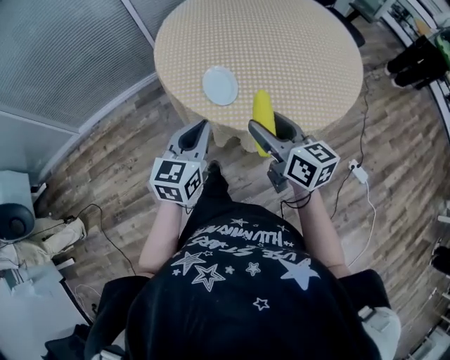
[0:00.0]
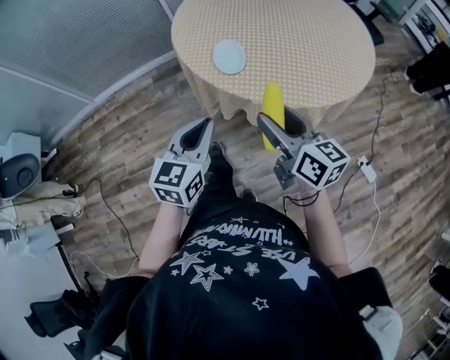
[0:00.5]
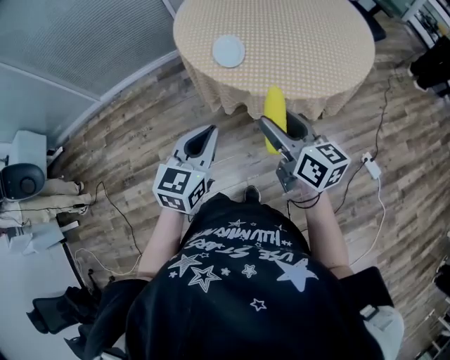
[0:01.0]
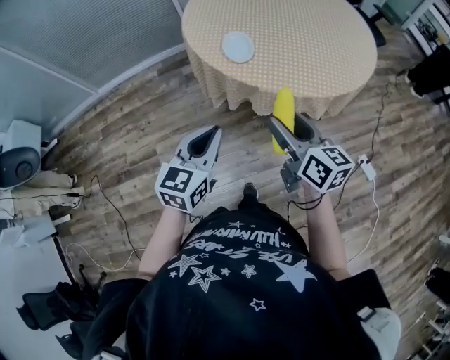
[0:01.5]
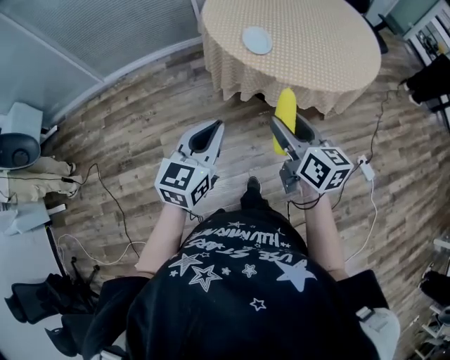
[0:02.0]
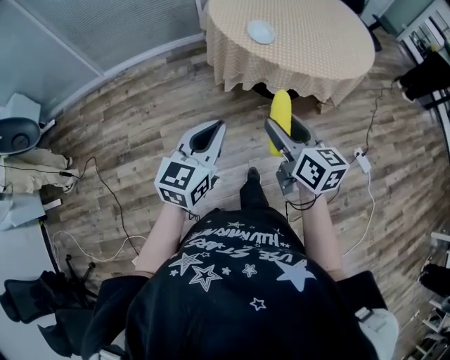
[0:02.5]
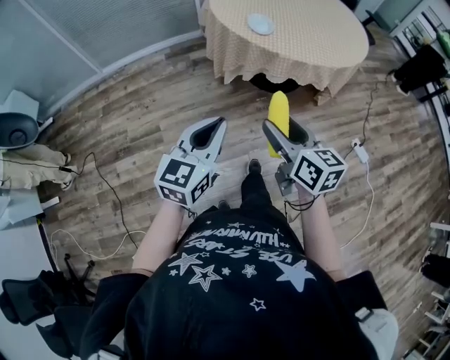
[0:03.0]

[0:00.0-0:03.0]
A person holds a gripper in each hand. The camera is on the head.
0:00.0 to 0:01.5: The two grippers go some 15 cm backward.
0:01.5 to 0:03.0: Both grippers travel together backward and to the left, some 25 cm.

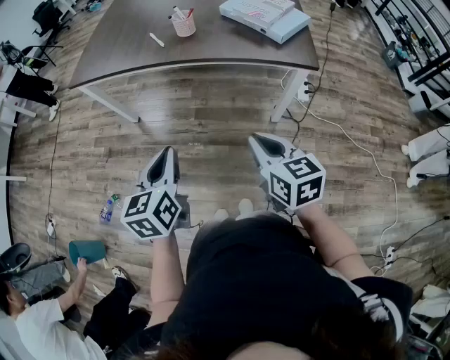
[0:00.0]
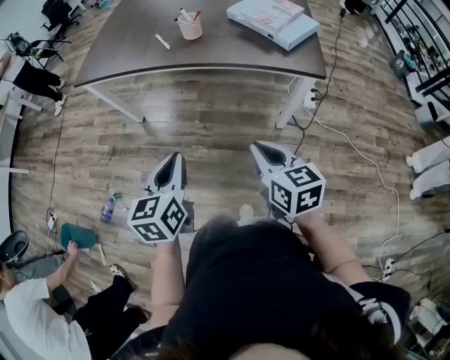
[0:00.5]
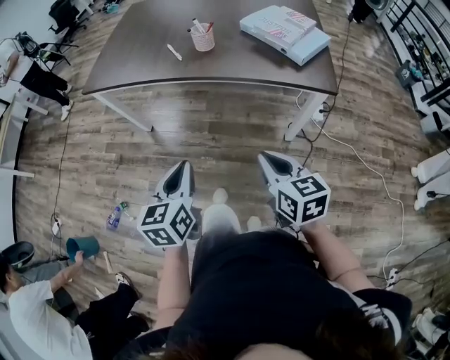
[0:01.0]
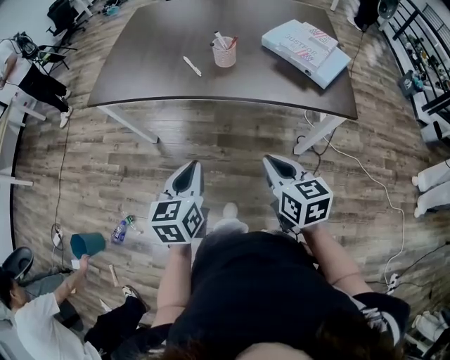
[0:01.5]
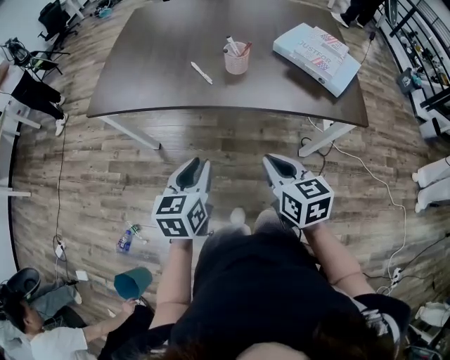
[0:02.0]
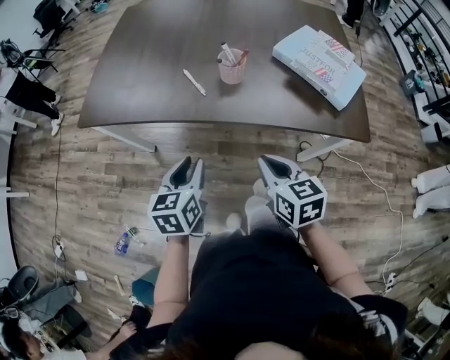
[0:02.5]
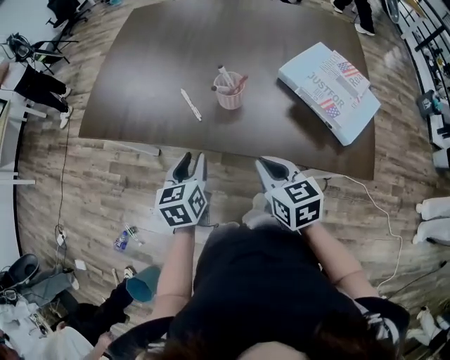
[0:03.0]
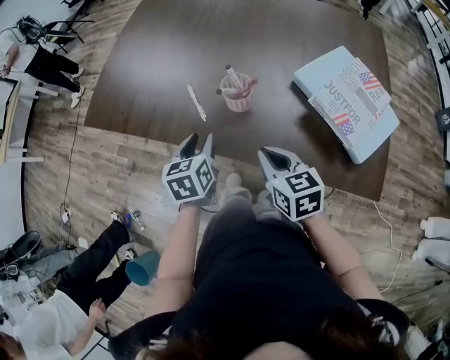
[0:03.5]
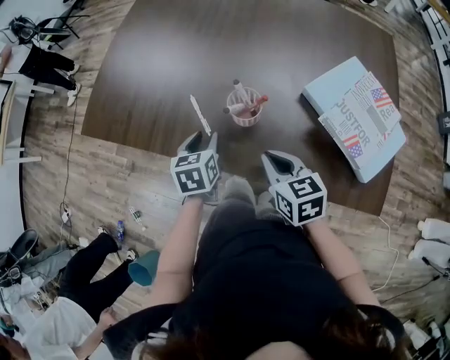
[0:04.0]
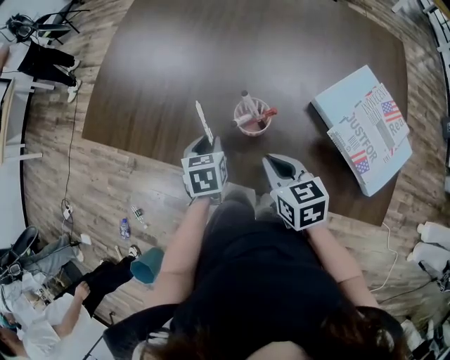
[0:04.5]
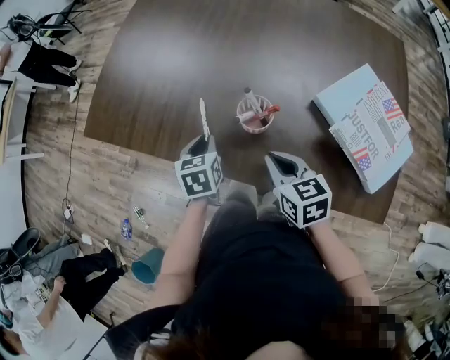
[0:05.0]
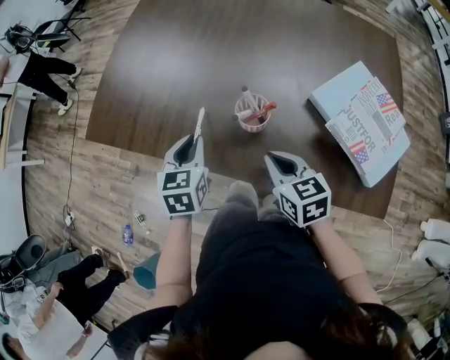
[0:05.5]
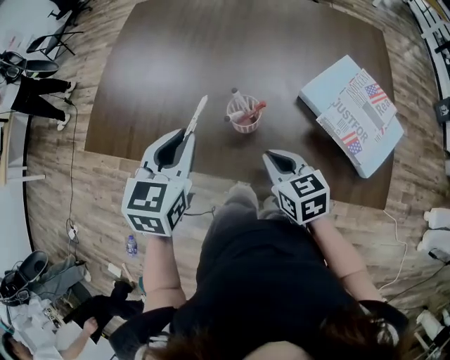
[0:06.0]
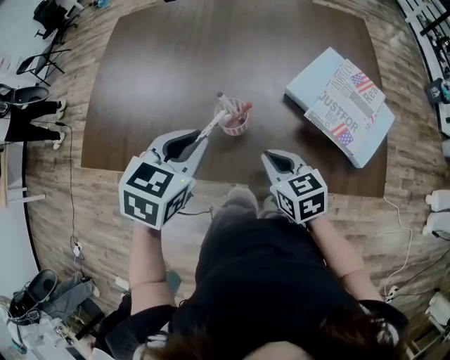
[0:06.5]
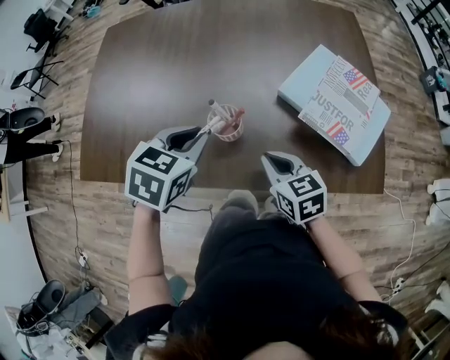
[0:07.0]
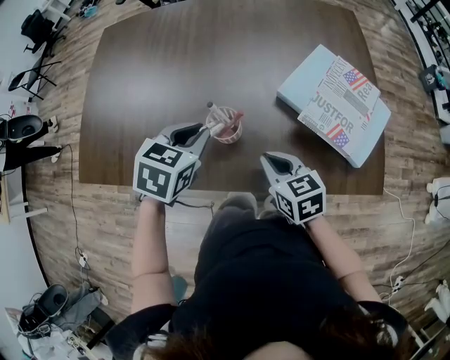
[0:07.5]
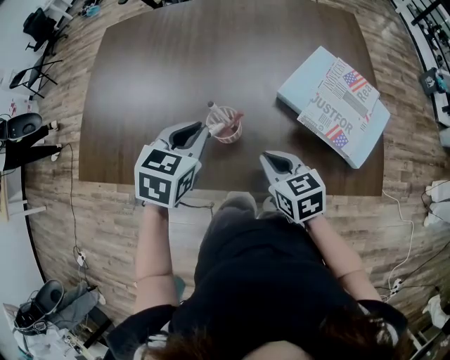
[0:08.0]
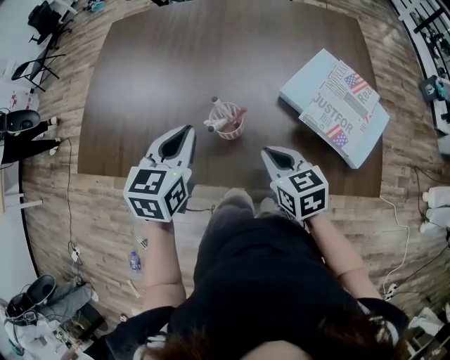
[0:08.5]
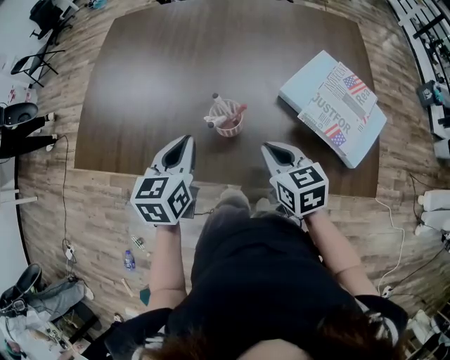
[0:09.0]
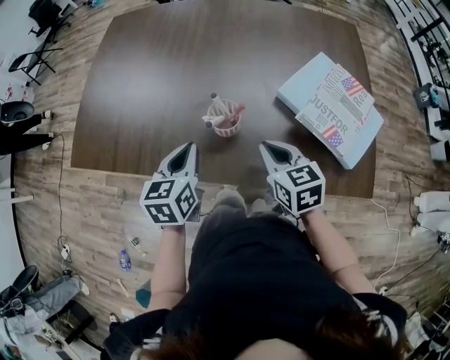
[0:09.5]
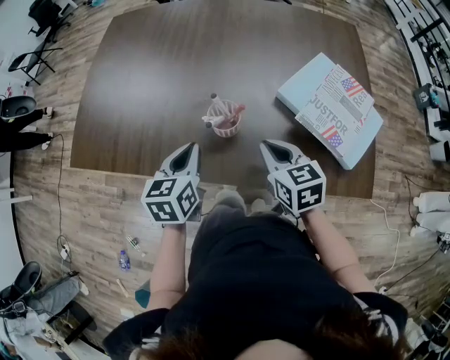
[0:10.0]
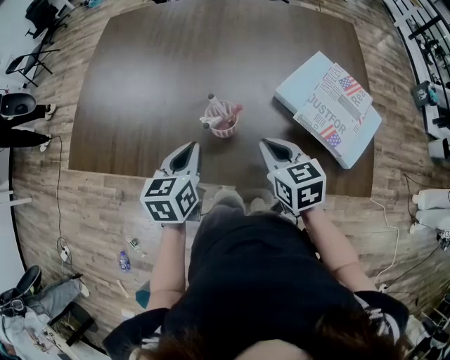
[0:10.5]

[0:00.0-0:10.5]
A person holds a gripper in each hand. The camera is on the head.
0:00.0 to 0:02.0: Both grippers move forward and to the left, some 25 cm. The left gripper opens up.
0:02.0 to 0:04.0: Both grippers move forward, some 30 cm. The left gripper rotates some 20 degrees.
0:04.0 to 0:06.5: The left gripper heads upward, covering roughly 15 cm, changes its angle by some 40 degrees, and closes up.
0:06.5 to 0:08.5: The left gripper changes its angle by roughly 20 degrees.
0:08.5 to 0:10.5: The left gripper moves downward, about 5 cm.

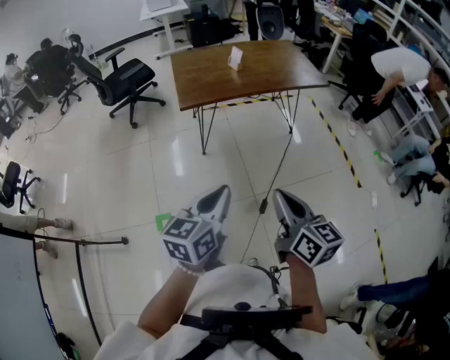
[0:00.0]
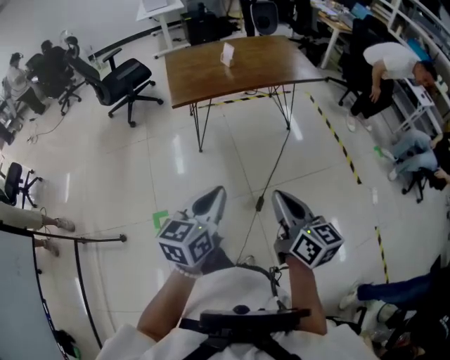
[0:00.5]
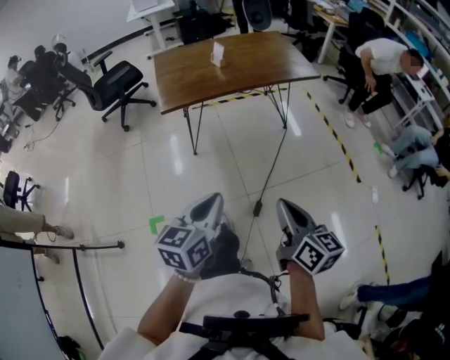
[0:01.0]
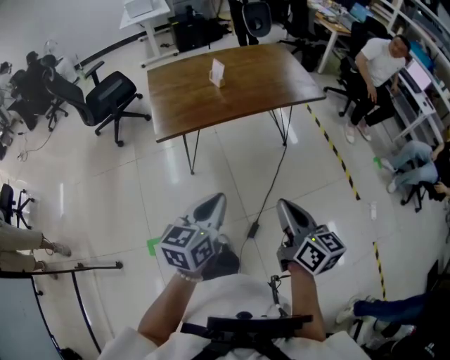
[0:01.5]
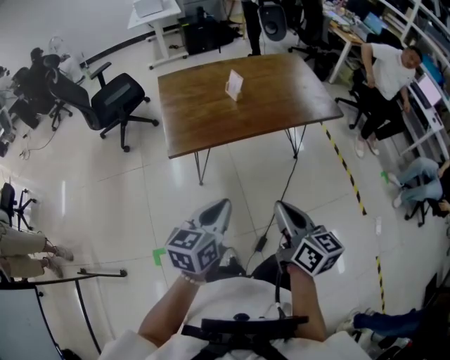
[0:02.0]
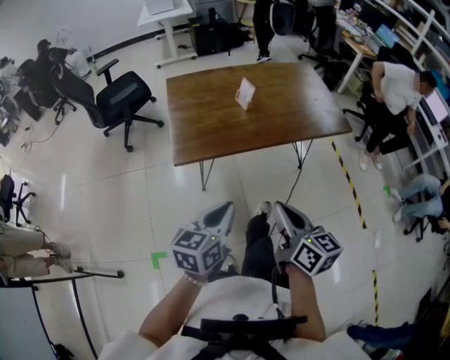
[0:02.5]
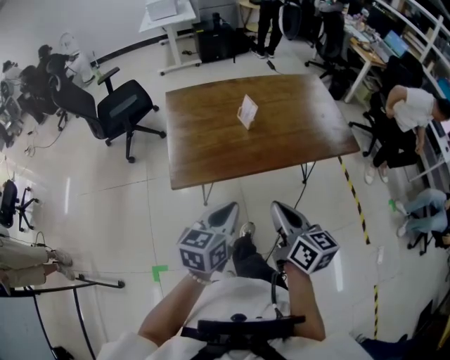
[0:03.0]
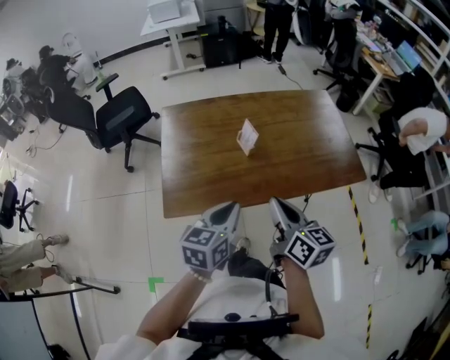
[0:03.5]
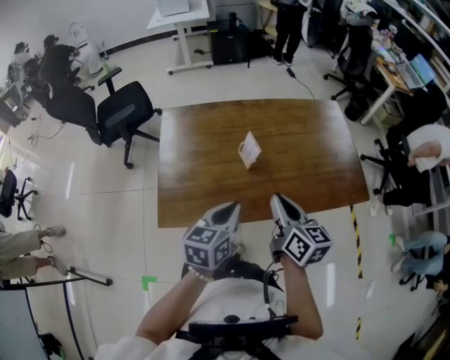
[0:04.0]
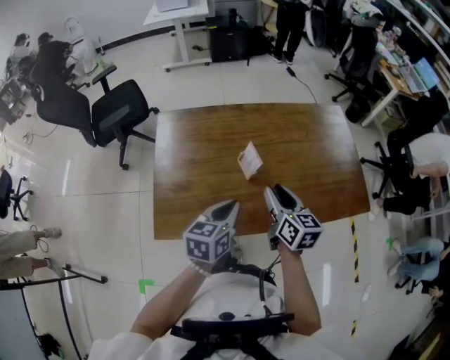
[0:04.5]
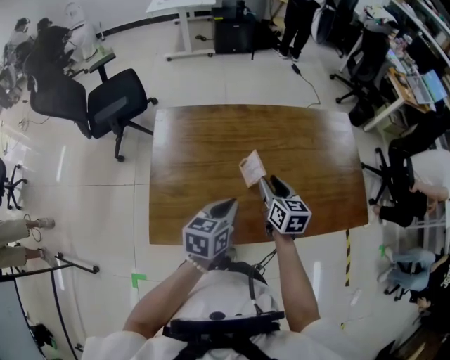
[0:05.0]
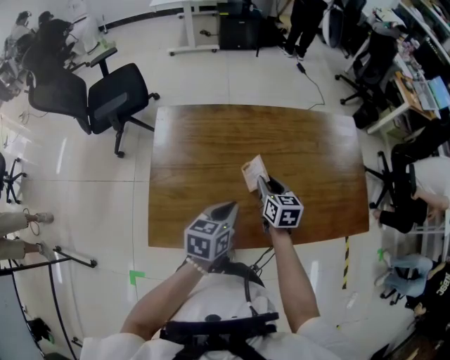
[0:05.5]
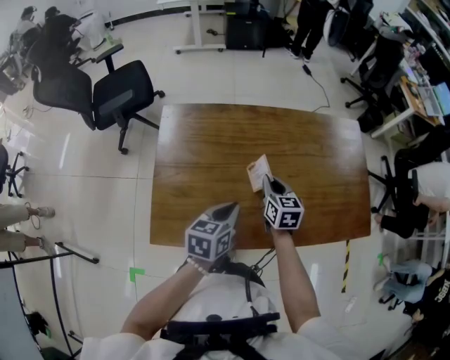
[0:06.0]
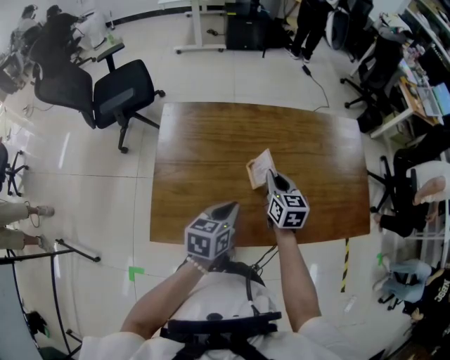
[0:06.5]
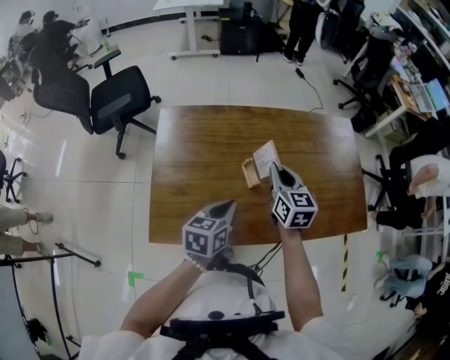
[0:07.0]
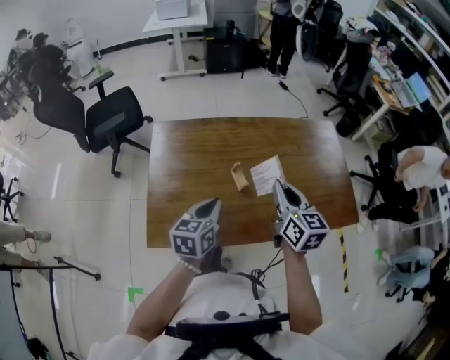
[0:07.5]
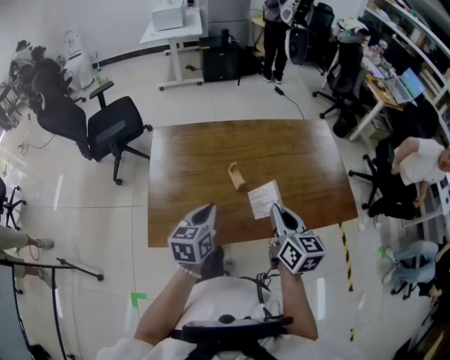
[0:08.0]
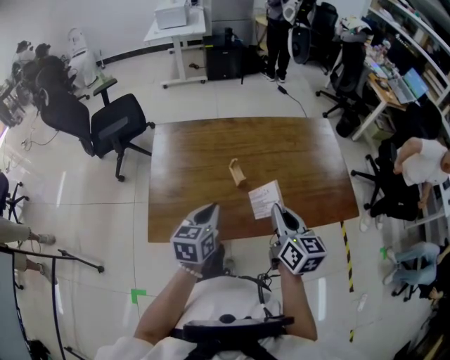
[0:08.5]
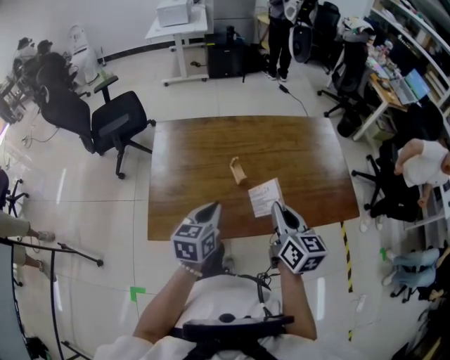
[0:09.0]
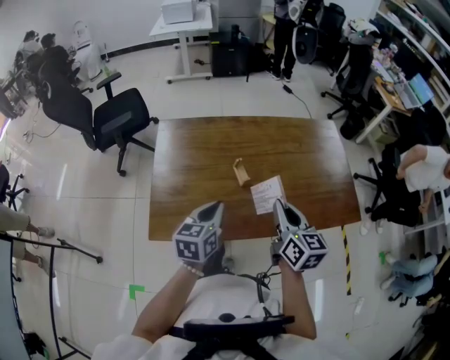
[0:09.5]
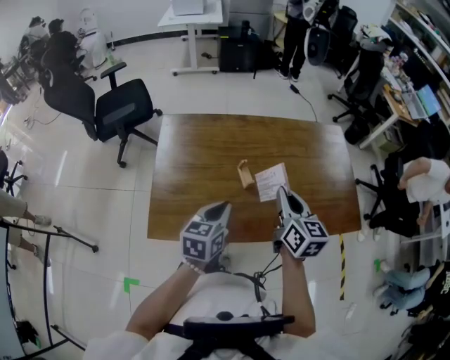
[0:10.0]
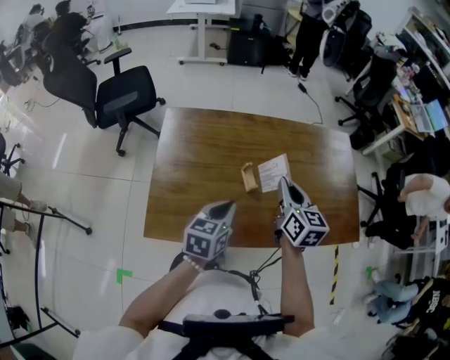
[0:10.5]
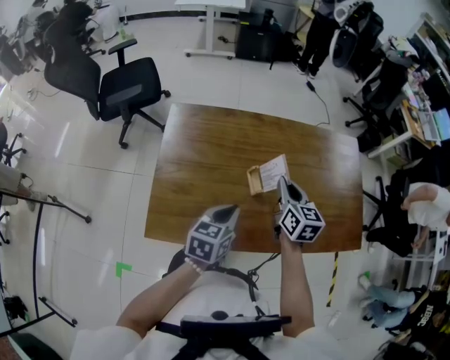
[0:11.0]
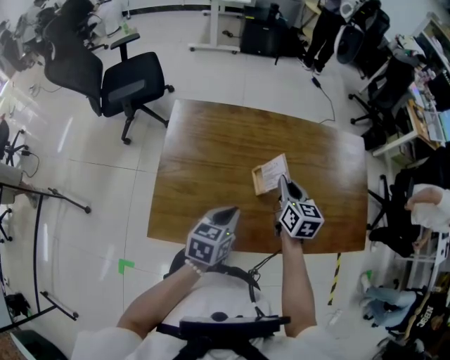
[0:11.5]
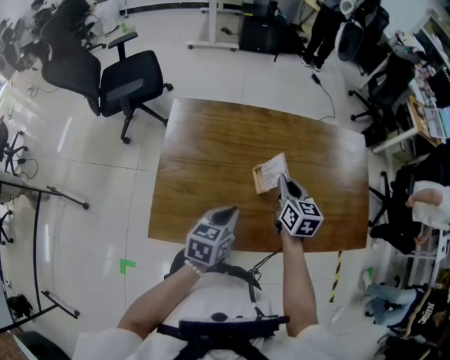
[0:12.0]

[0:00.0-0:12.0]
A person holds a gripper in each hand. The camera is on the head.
0:00.0 to 0:02.0: Both grippers travel together forward, approximately 30 cm.
0:02.0 to 0:04.0: Both grippers travel together forward, about 40 cm.
0:04.0 to 0:06.0: The left gripper heads forward and downward, covering some 15 cm, while the right gripper shifts approximately 25 cm forward and downward, swivels some 20 degrees, and opens, then closes again.
0:06.0 to 0:08.0: The left gripper shifts approximately 10 cm backward and upward. Meanwhile the right gripper goes some 25 cm backward, upward and to the right.
0:08.0 to 0:10.0: The right gripper goes some 5 cm forward.
0:10.0 to 0:12.0: The right gripper shifts about 15 cm forward, downward and to the left. Meanwhile the left gripper heads downward, covering about 5 cm.

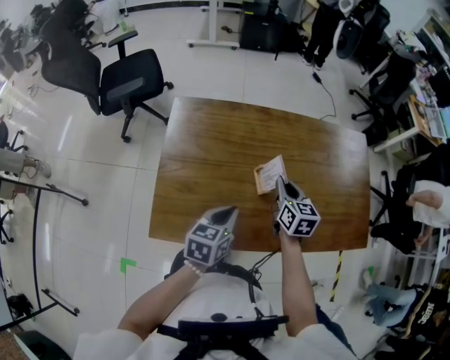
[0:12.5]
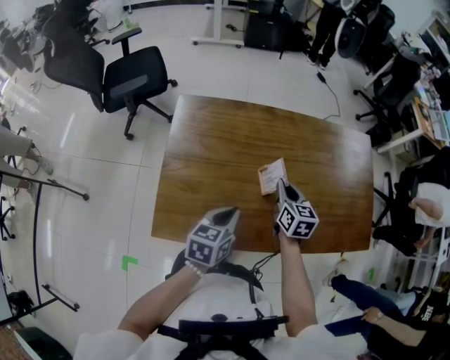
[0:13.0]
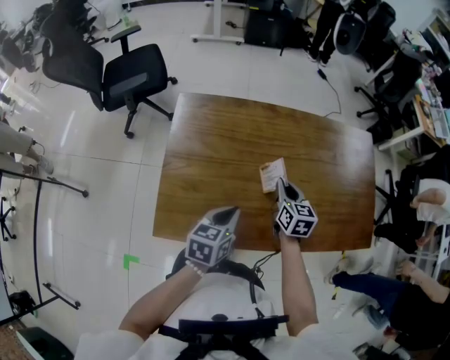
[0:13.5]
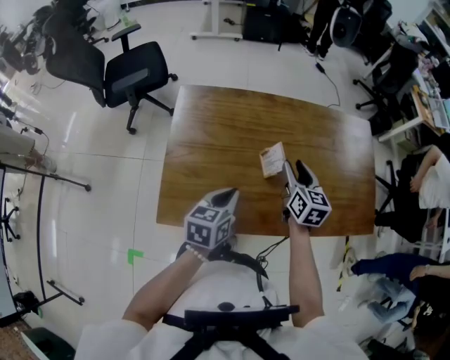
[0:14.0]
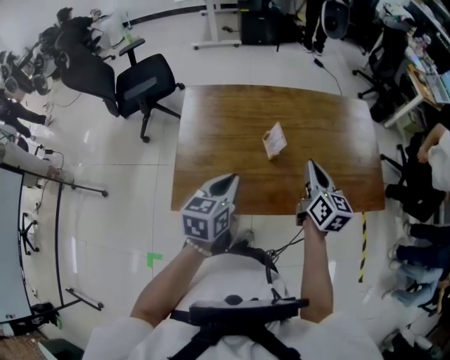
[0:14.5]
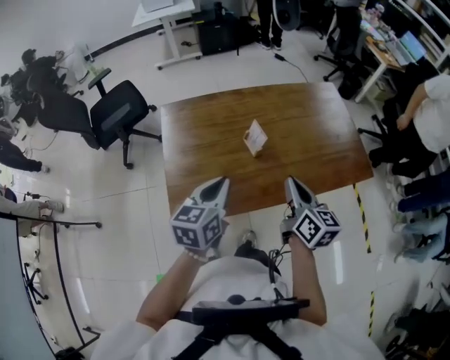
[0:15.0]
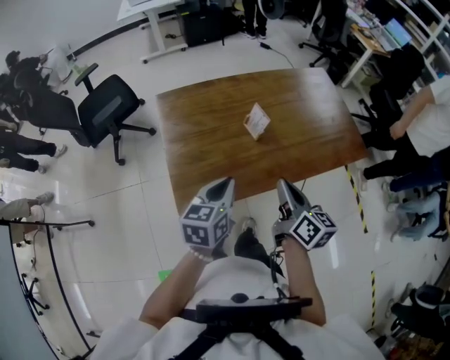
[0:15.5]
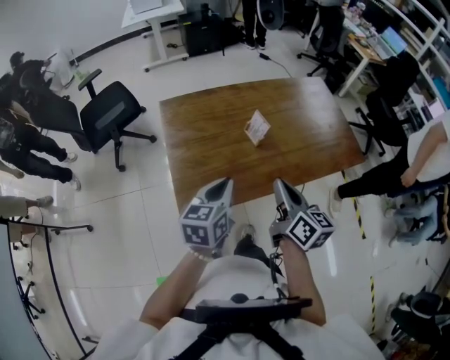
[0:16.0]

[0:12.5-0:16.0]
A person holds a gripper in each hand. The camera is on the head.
0:12.5 to 0:14.5: The left gripper moves upward and backward, roughly 10 cm; the right gripper heads upward, backward and to the right, covering some 15 cm, and opens, then closes once more.
0:14.5 to 0:16.0: The right gripper travels backward and to the left by approximately 20 cm. Meanwhile the left gripper is displaced backward by some 5 cm.
